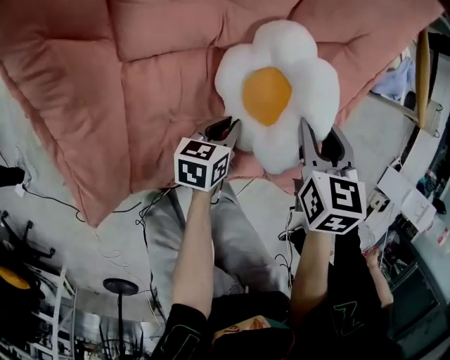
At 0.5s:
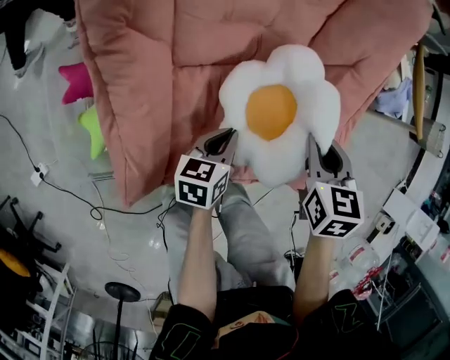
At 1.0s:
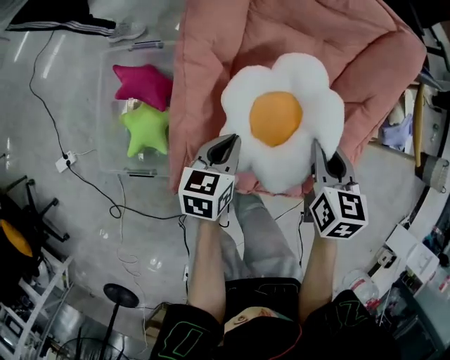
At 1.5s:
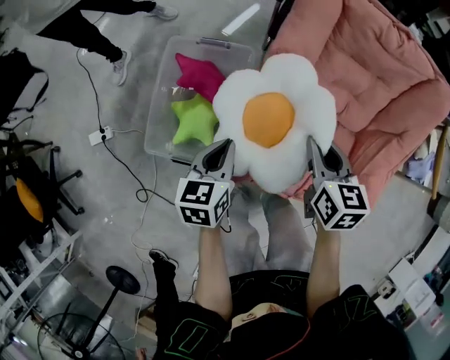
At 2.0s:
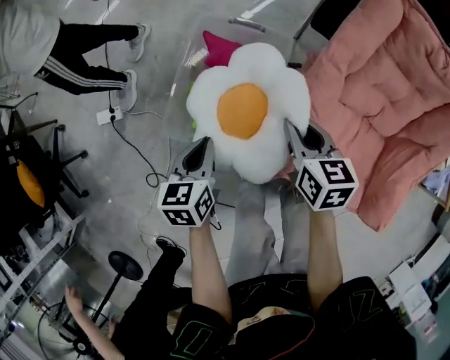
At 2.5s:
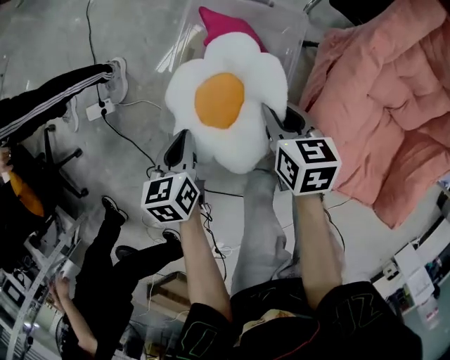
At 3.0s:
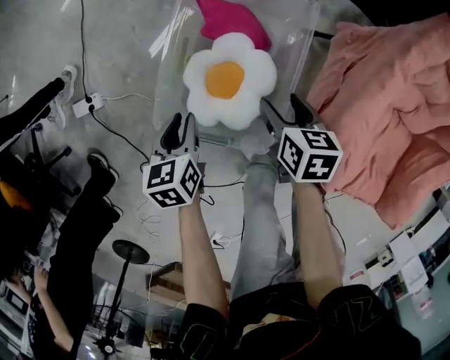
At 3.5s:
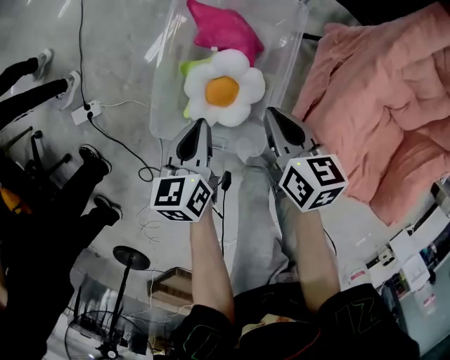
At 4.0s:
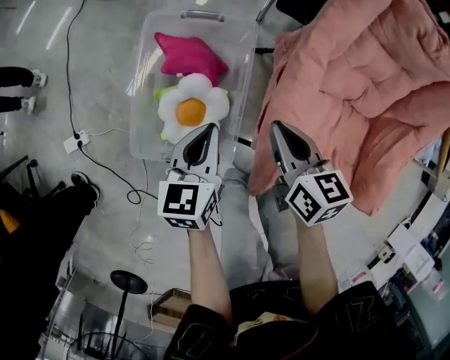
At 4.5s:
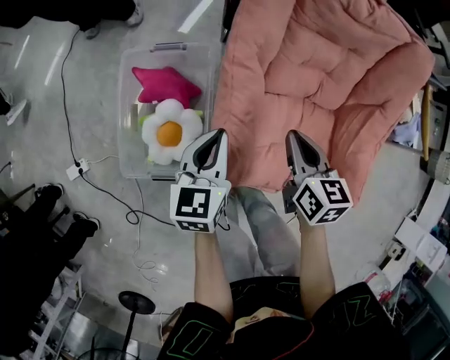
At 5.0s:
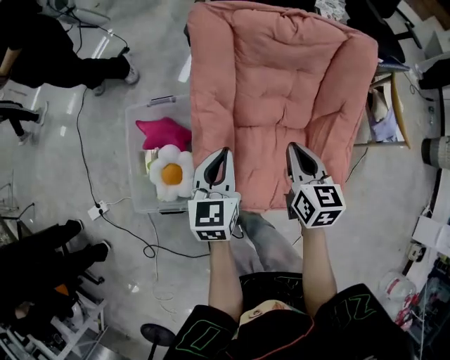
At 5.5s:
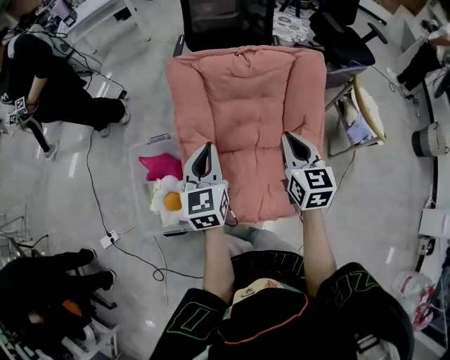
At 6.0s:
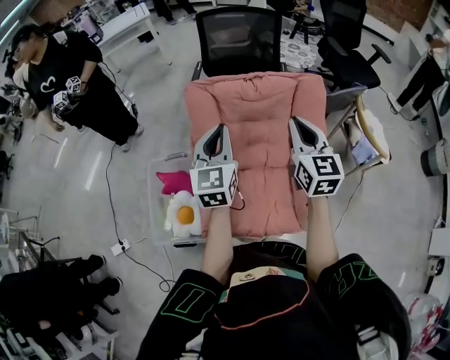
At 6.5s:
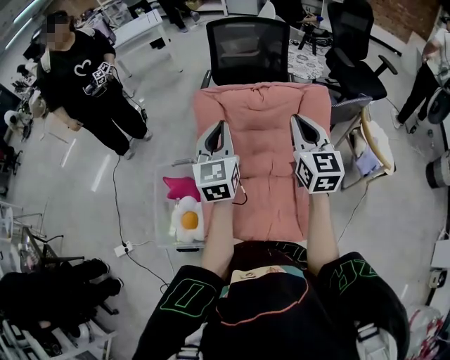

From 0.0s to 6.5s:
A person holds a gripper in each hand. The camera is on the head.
From 0.0s to 2.0s: The two grippers travel together, roughly 60 cm. The left gripper turns by roughly 50 degrees; the right gripper swivels roughly 40 degrees.
From 2.0s to 4.5s: The right gripper moves approximately 20 cm downward and comes back, changes its angle by some 20 degrees, and opens, then closes again. The left gripper travels downward and back again, roughly 15 cm each way, and swivels approximately 30 degrees.
From 4.5s to 6.5s: The two grippers go about 40 cm upward and to the right. The right gripper tips its fingers upward by approximately 30 degrees, while the left gripper turns by some 30 degrees.

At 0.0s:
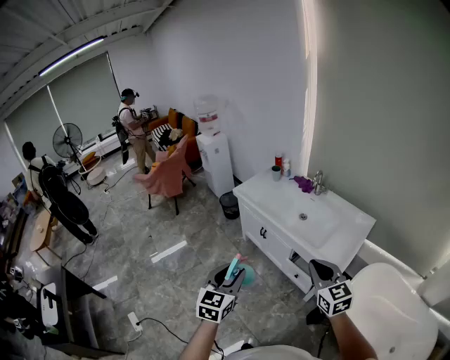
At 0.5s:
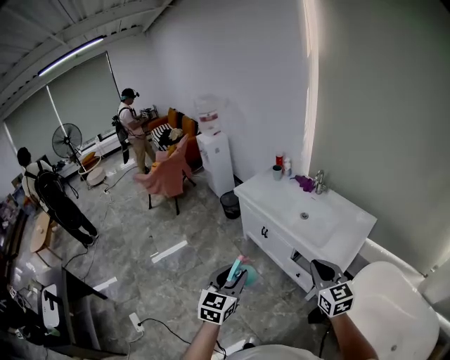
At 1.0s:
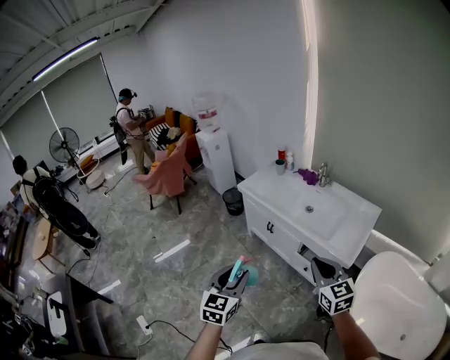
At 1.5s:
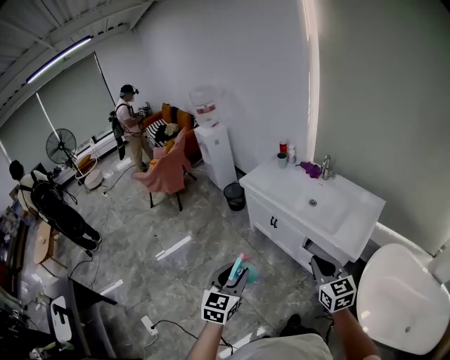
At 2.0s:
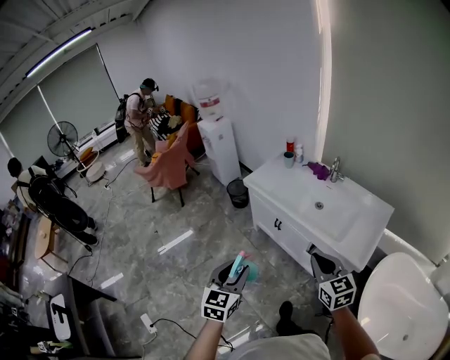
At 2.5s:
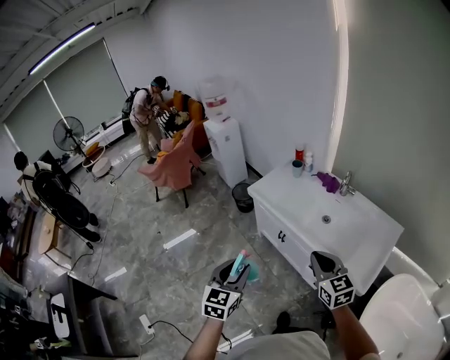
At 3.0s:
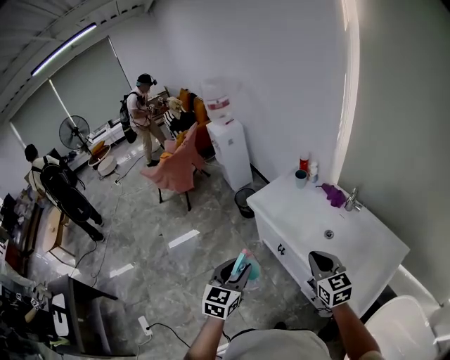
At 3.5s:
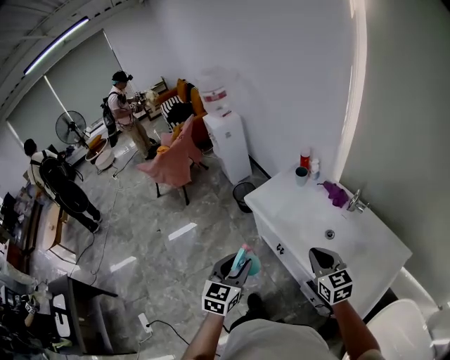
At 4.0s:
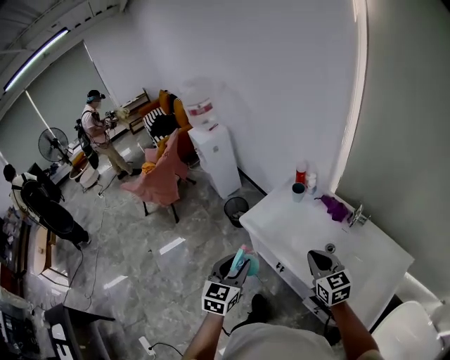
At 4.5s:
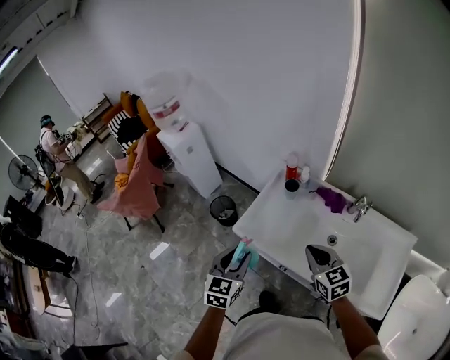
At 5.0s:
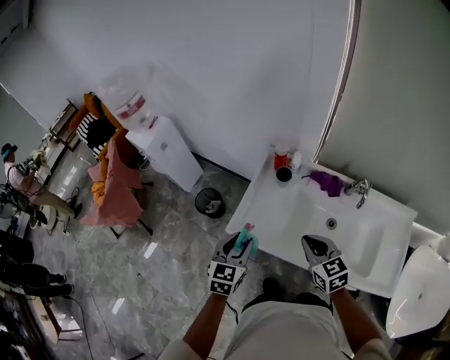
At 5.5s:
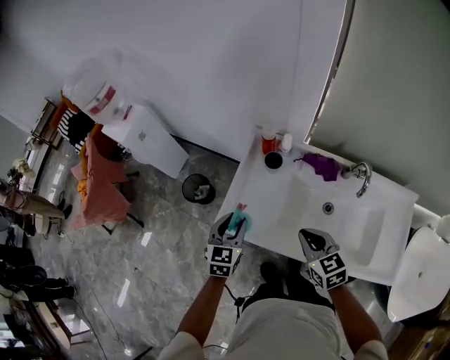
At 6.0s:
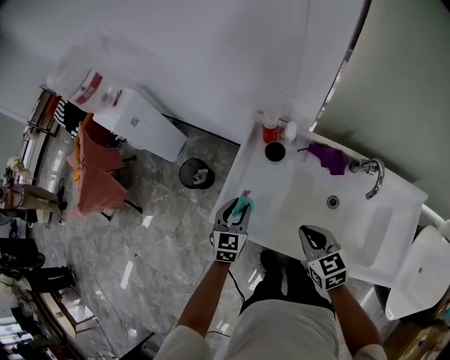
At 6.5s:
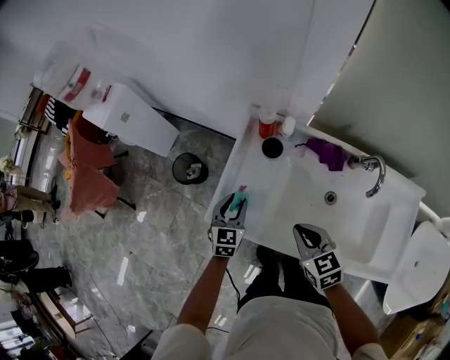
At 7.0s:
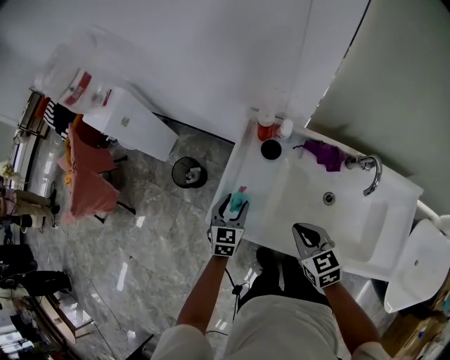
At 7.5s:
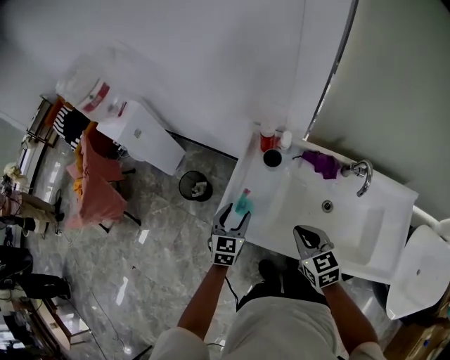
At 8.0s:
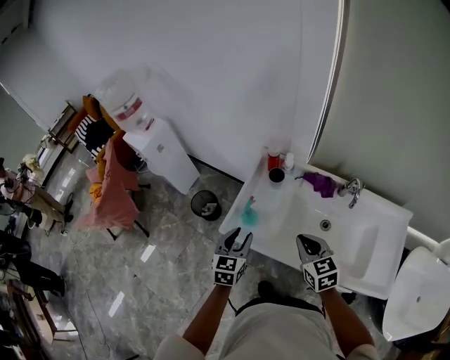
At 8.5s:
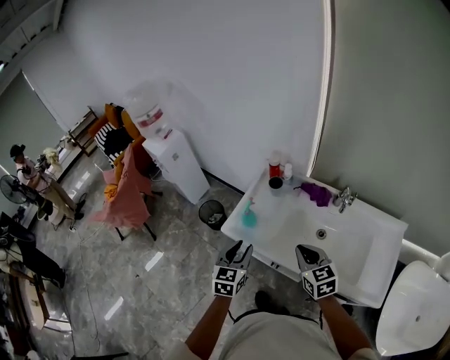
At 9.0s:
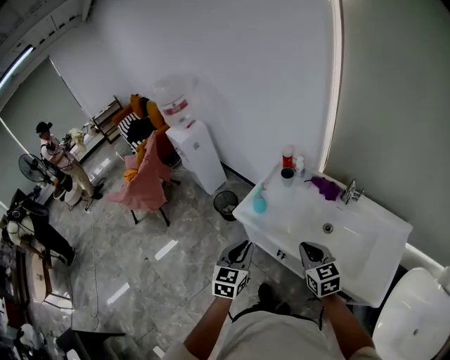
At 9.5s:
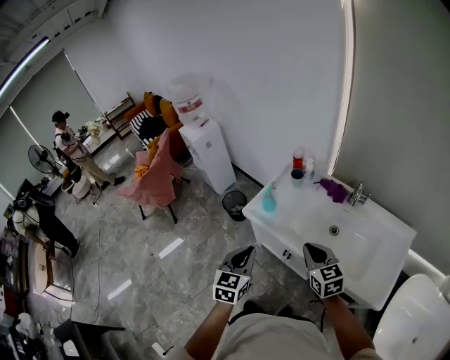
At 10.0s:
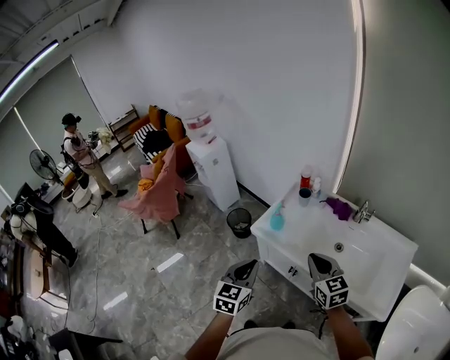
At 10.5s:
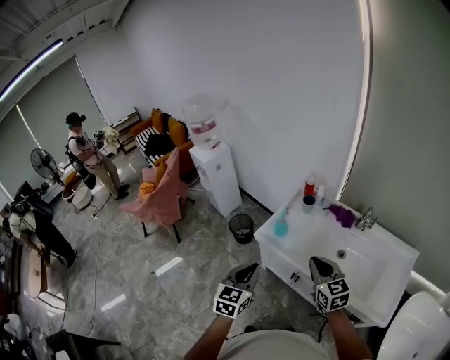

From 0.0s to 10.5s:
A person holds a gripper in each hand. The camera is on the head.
From 0.0s to 2.0s: The grippers both shift to the left and forward by about 10 cm.
From 2.0s to 4.0s: The pair of grippers is taken forward, about 40 cm.
From 4.0s to 6.5s: The left gripper travels forward and downward by some 50 cm, and changes its angle by some 20 degrees. Meanwhile the right gripper is displaced forward and downward by some 25 cm, and turns by roughly 30 degrees.
From 6.5s to 8.5s: The left gripper goes some 30 cm backward and upward, and opens, then closes again. The right gripper shifts about 20 cm backward and upward.
From 8.5s to 10.5s: The right gripper shifts some 15 cm upward, to the left and backward. Meanwhile the left gripper goes roughly 20 cm backward, upward and to the left, and closes its fingers.

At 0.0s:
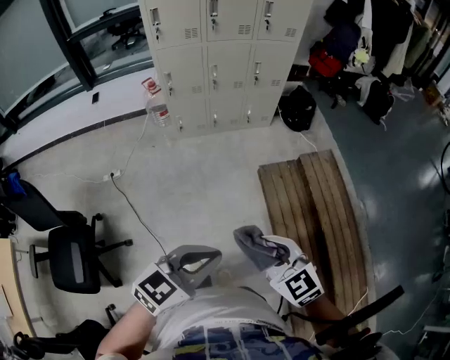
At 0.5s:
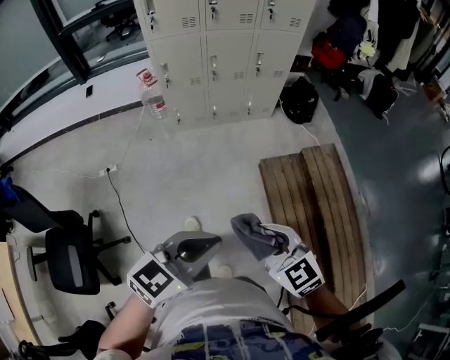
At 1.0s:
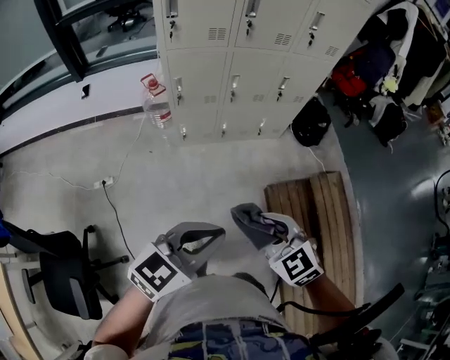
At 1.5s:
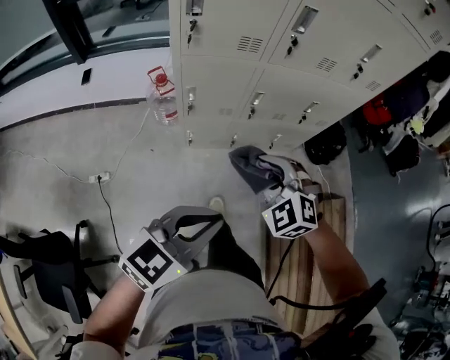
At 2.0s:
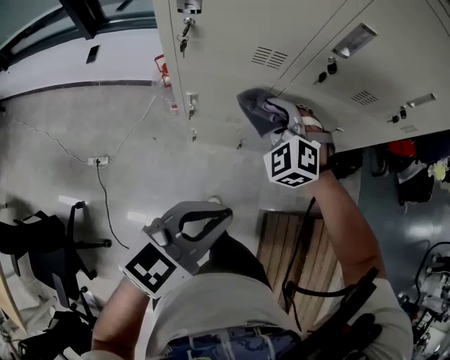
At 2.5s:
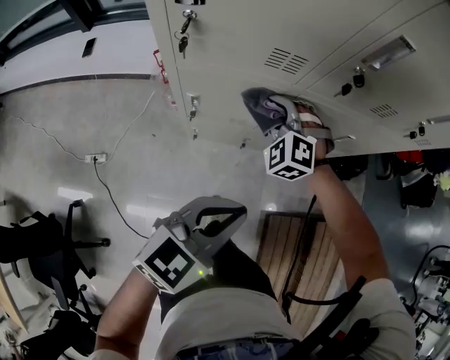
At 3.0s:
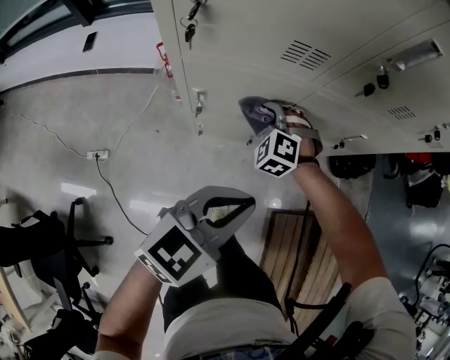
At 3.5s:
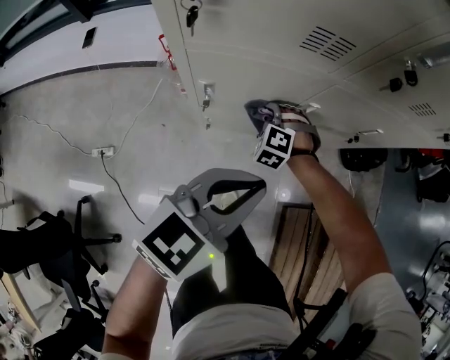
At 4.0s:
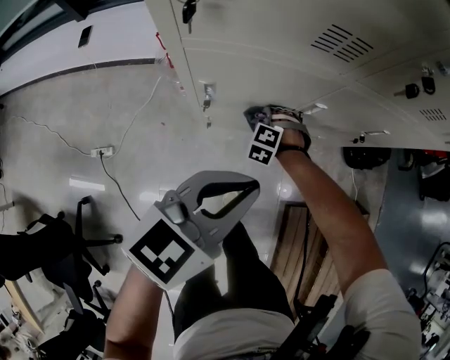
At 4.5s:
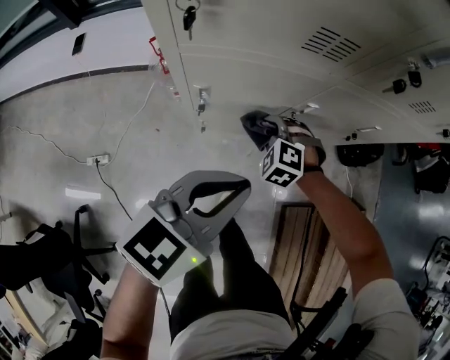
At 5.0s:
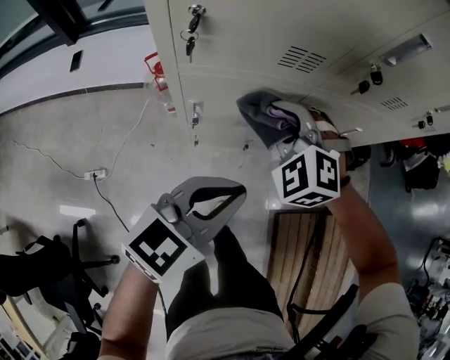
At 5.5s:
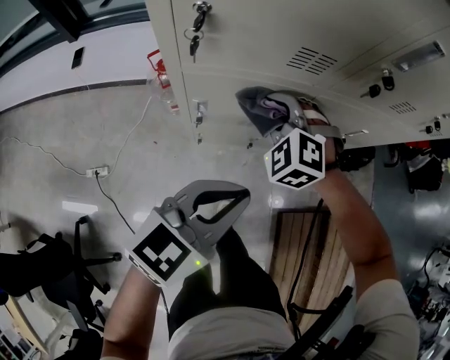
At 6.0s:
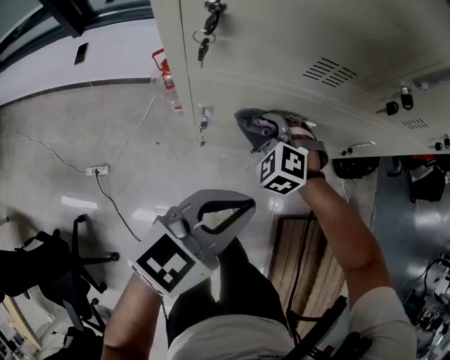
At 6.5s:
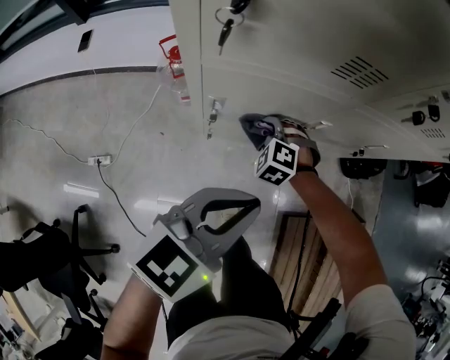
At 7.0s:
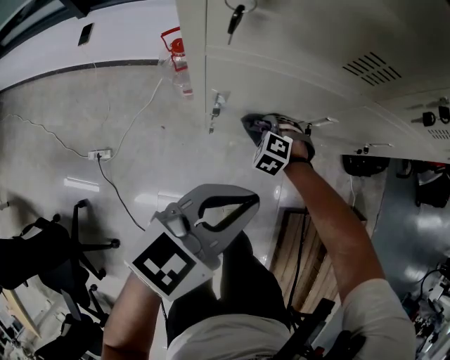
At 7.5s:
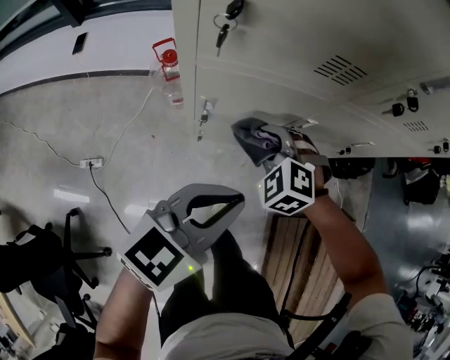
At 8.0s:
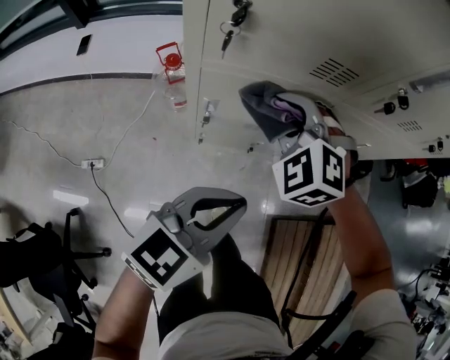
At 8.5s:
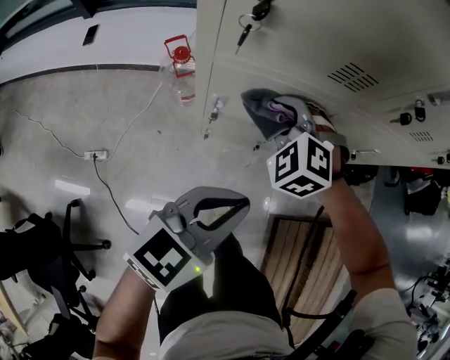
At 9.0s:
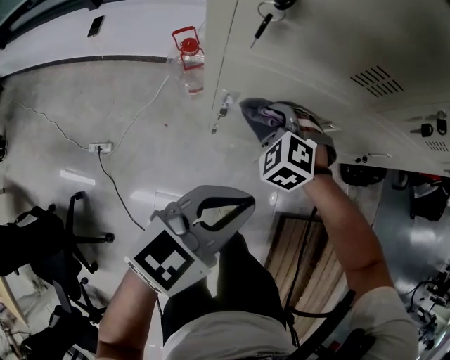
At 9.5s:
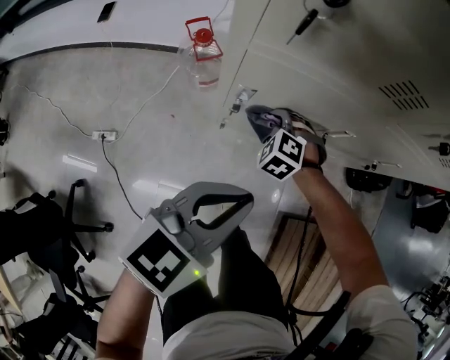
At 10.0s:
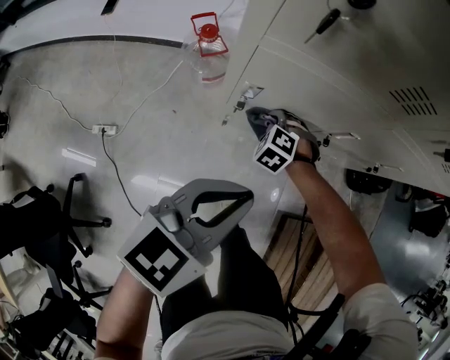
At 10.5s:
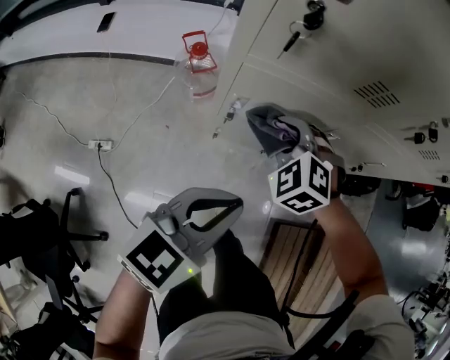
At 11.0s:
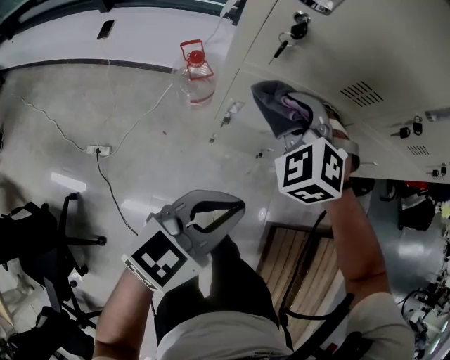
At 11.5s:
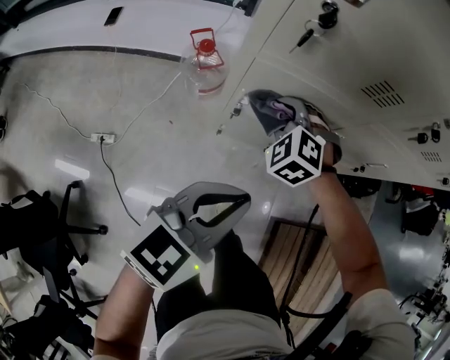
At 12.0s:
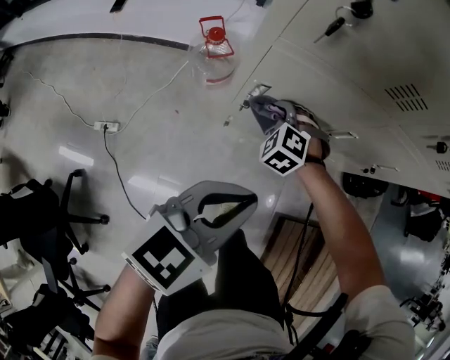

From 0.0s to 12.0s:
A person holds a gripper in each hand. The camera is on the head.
From 0.0s to 2.0s: The two grippers travel together, forward, some 80 cm. The right gripper twists approximately 50 degrees counterclockwise, seen from behind.
From 2.0s to 4.0s: The left gripper moves forward, downward and to the left, about 15 cm; the right gripper goes roughly 35 cm downward, and changes its angle by some 30 degrees.
From 4.0s to 6.0s: The right gripper moves upward, roughly 20 cm.
From 6.0s to 8.0s: The right gripper heads upward, covering about 15 cm.
From 8.0s to 10.0s: The right gripper is displaced downward by about 30 cm, and rotates some 30 degrees. The left gripper ends up some 5 cm from where it was.
From 10.0s to 12.0s: The right gripper goes upward and returns, roughly 30 cm each way.
